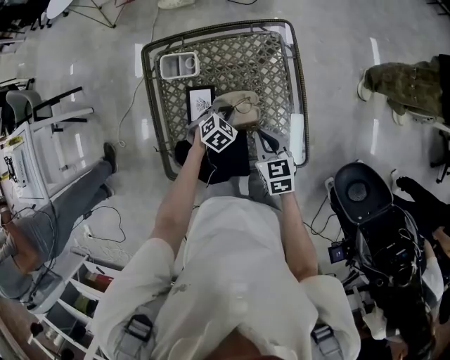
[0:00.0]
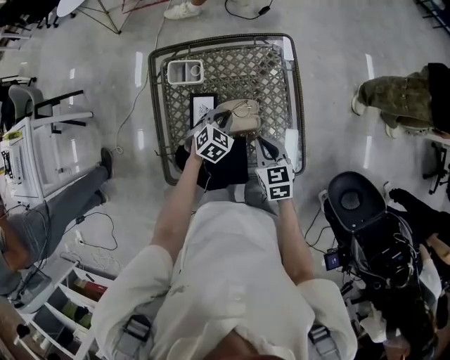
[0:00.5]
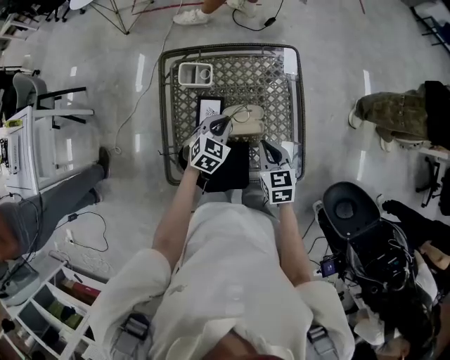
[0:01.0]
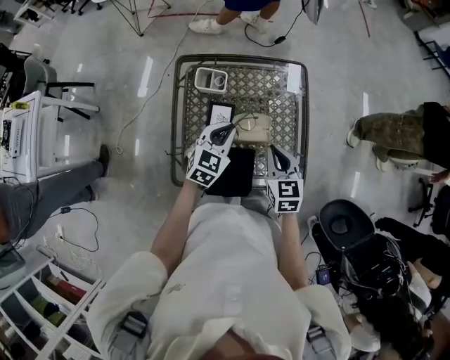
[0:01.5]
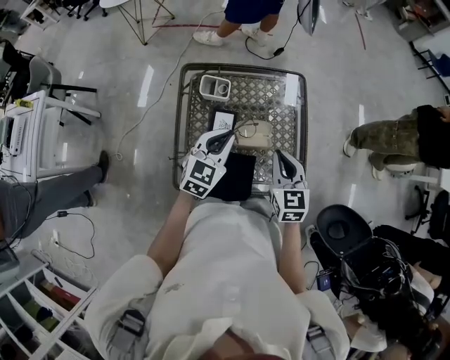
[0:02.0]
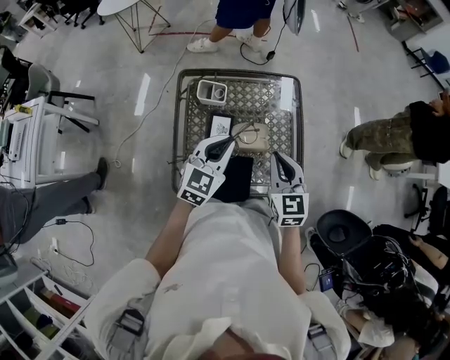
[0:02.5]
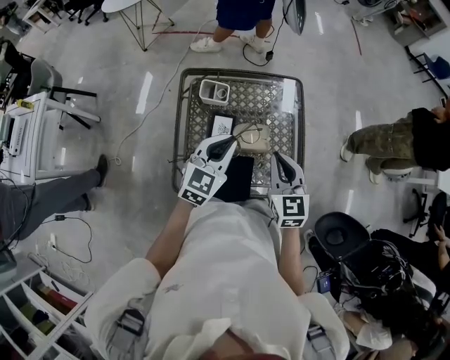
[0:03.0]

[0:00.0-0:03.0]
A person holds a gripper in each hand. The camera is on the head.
0:00.0 to 0:01.5: The left gripper is displaced upward by approximately 20 cm, and turns by approximately 30 degrees; the right gripper travels upward by roughly 10 cm.
0:01.5 to 0:03.0: The two grippers go roughly 10 cm upward.

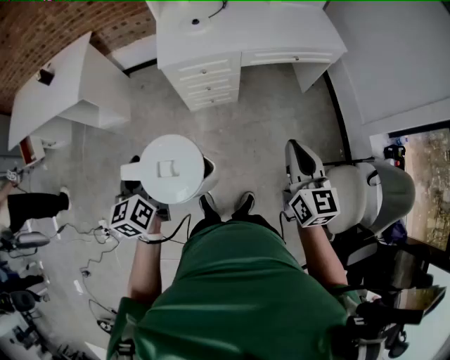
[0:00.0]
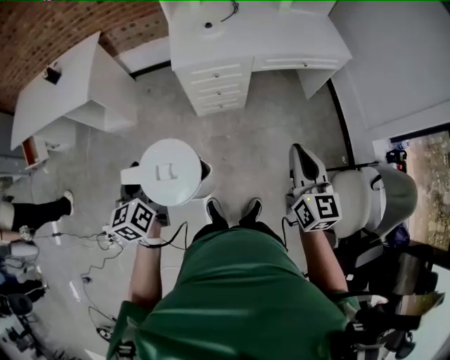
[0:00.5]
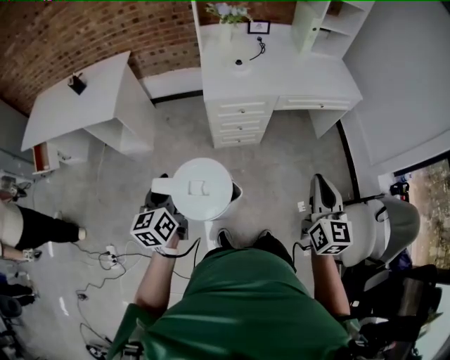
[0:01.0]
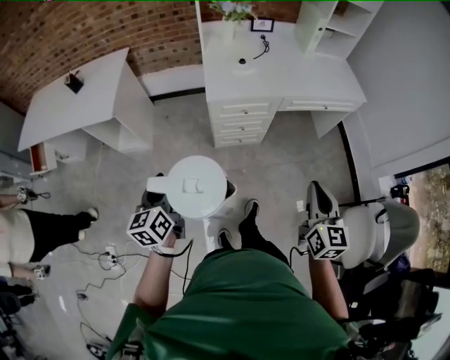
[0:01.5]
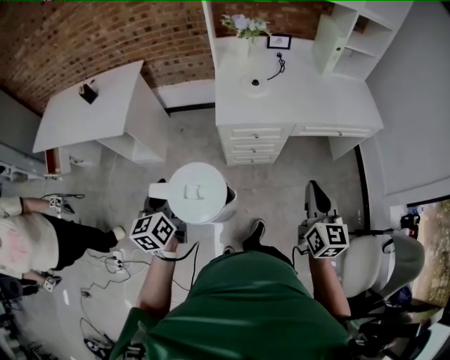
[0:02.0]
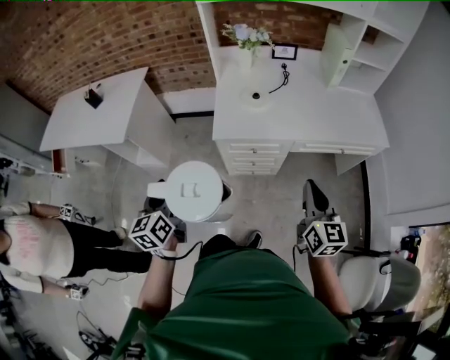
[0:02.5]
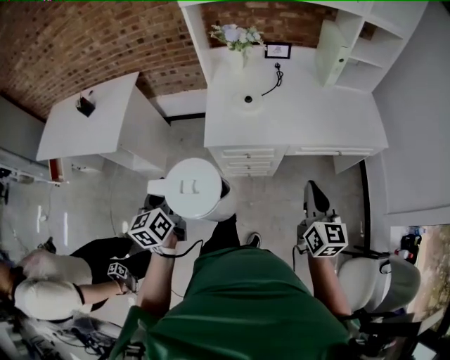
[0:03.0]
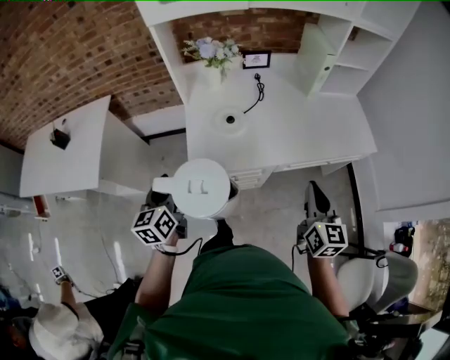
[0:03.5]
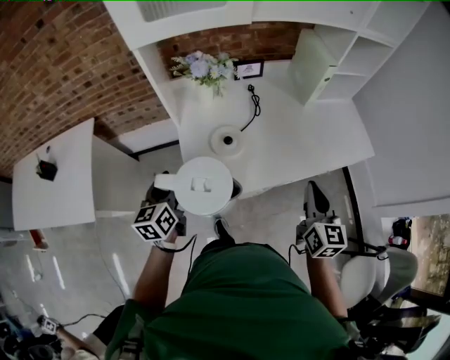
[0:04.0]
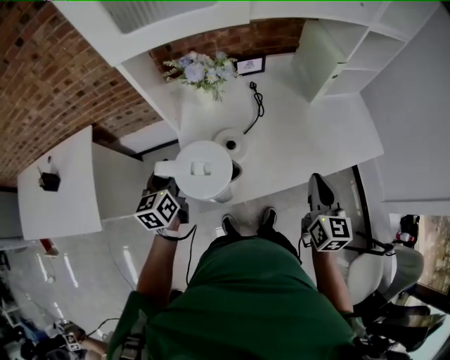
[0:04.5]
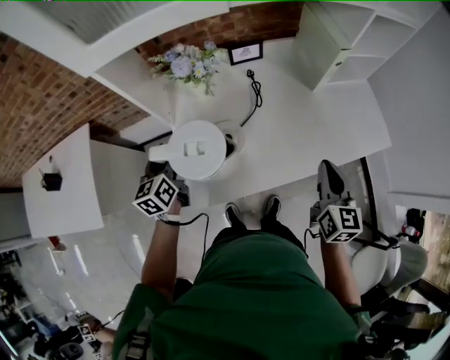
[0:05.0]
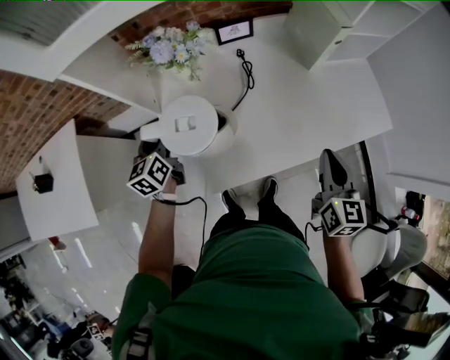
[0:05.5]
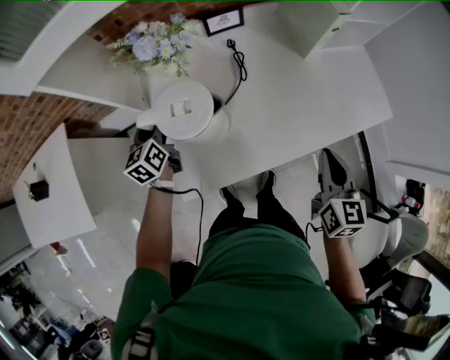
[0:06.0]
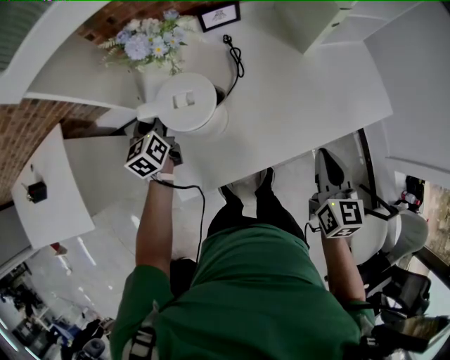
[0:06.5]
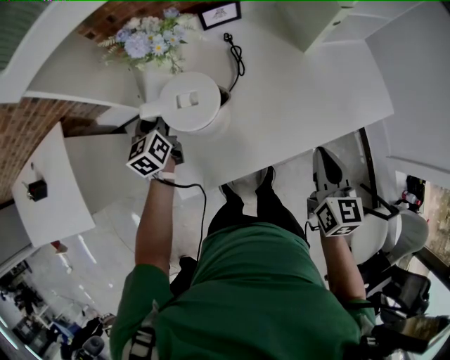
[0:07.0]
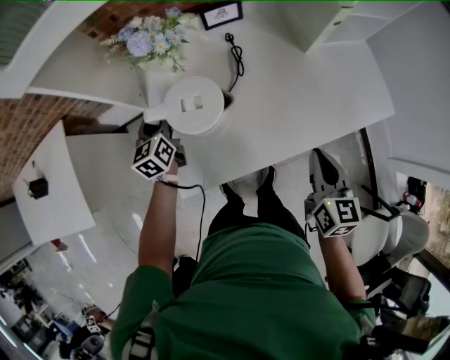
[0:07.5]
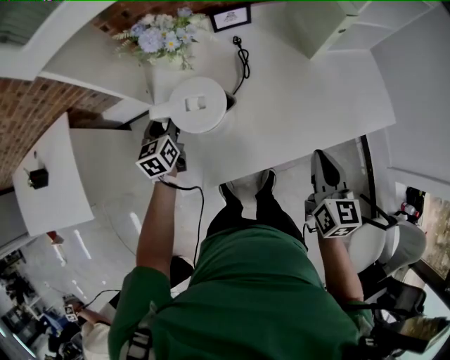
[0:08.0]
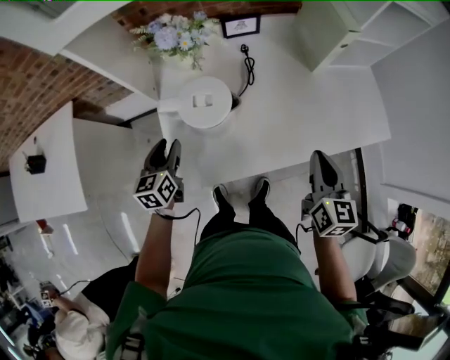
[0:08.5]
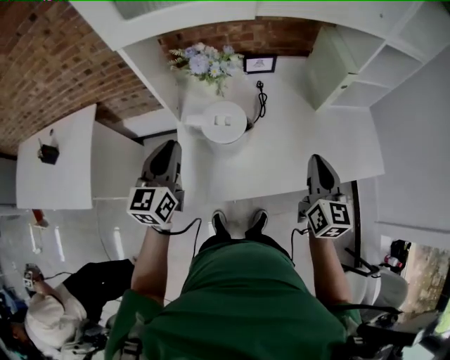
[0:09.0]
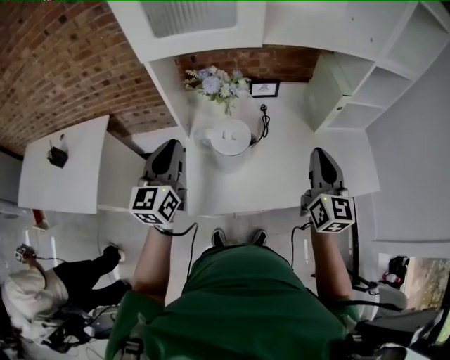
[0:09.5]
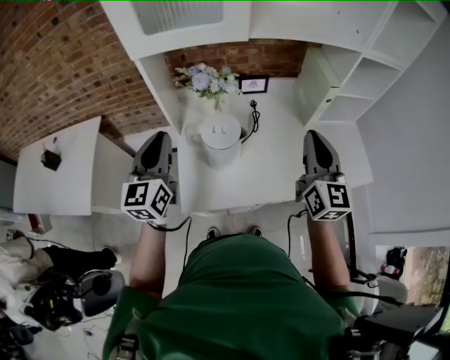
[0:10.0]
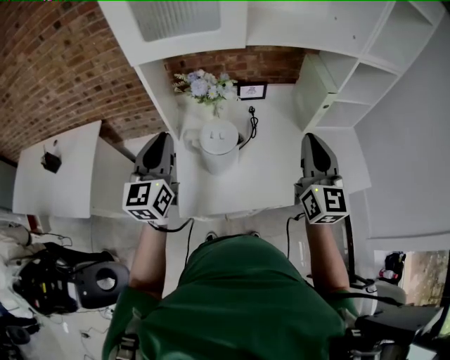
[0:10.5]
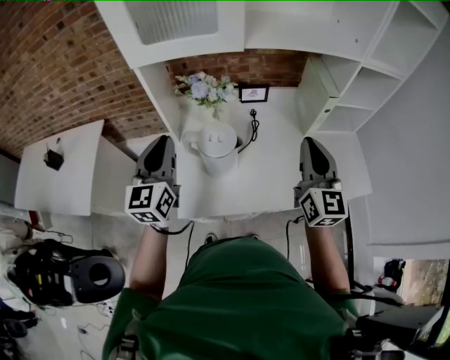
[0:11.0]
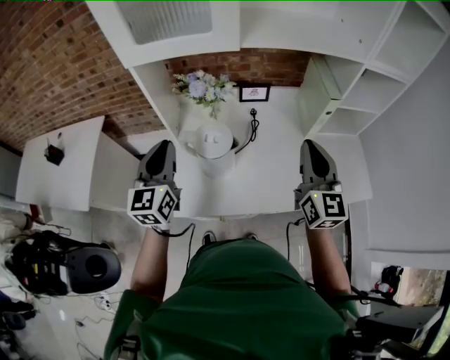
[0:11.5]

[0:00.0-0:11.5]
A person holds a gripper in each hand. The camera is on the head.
0:00.0 to 0:02.0: Both grippers move forward and to the left, some 20 cm.
0:02.0 to 0:04.0: The two grippers go roughly 40 cm forward.
0:04.0 to 0:06.0: The right gripper is displaced forward, downward and to the right by some 15 cm, while the left gripper heads forward and downward, covering about 25 cm.
0:06.0 to 0:07.5: There are only small adjustments of the grippers.
0:07.5 to 0:09.5: The left gripper moves upward and backward, roughly 30 cm, changes its angle by about 20 degrees, and closes its fingers, while the right gripper shifts approximately 20 cm upward, and swivels some 30 degrees.
0:09.5 to 0:11.5: There are only small adjustments of the grippers.

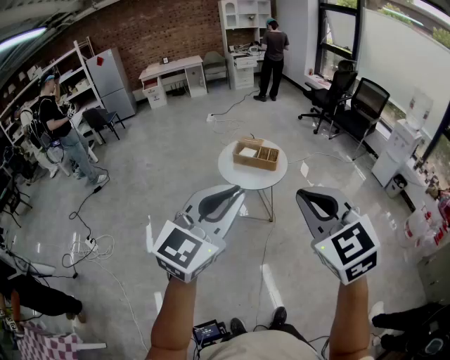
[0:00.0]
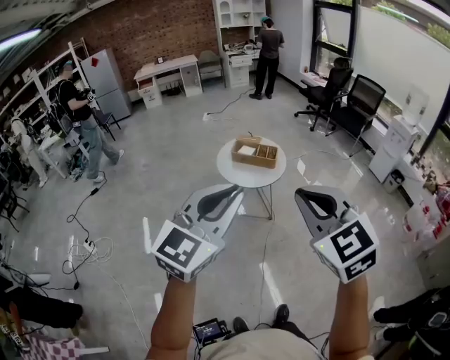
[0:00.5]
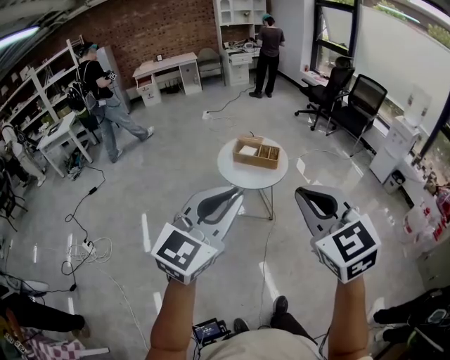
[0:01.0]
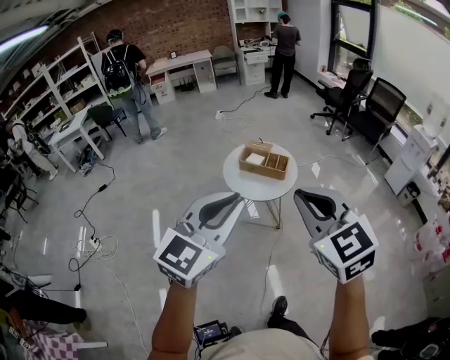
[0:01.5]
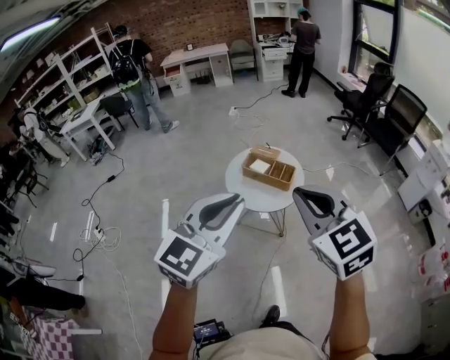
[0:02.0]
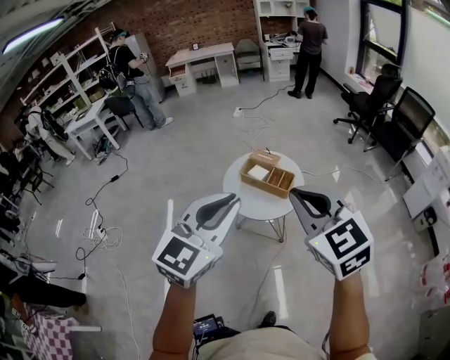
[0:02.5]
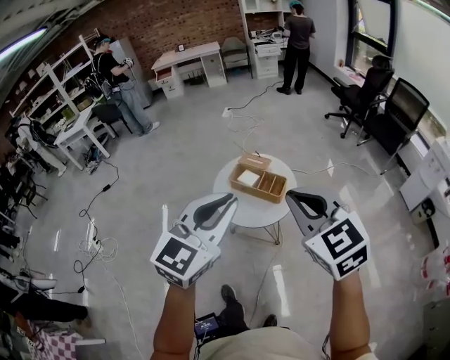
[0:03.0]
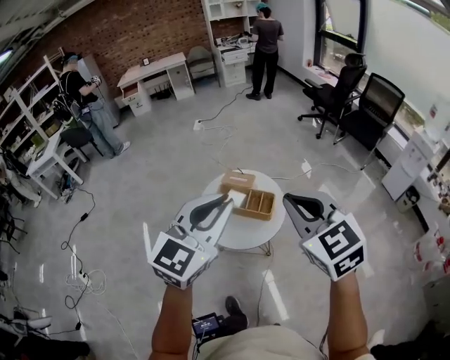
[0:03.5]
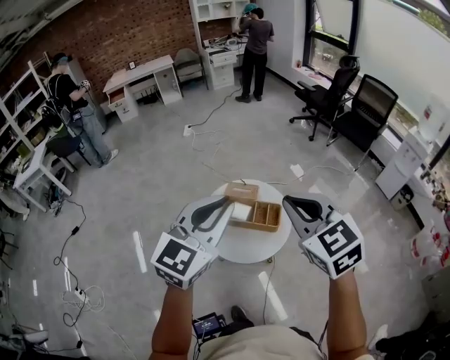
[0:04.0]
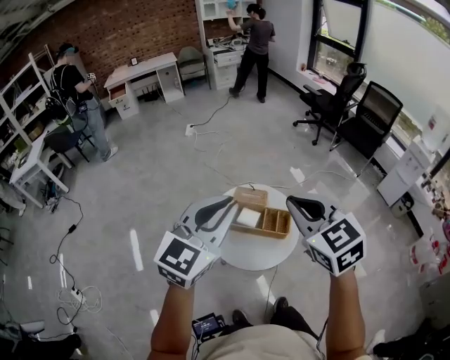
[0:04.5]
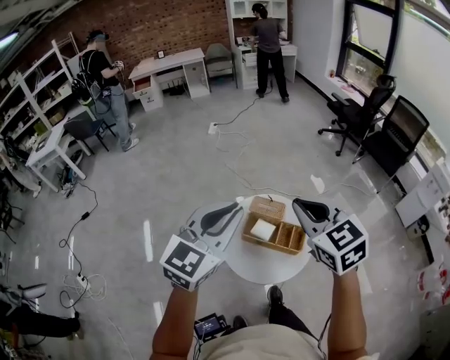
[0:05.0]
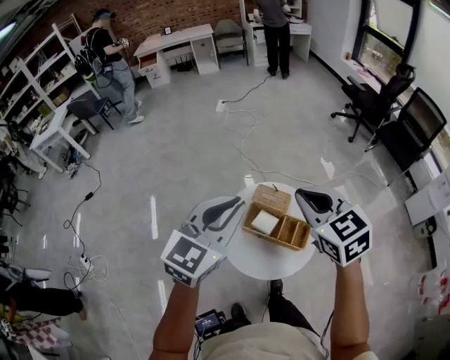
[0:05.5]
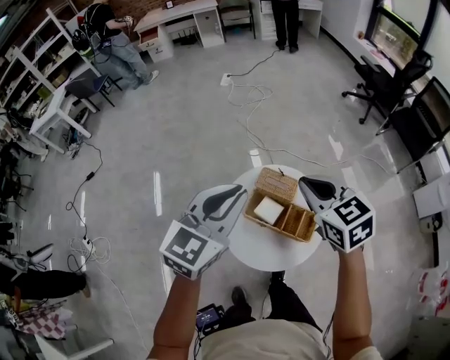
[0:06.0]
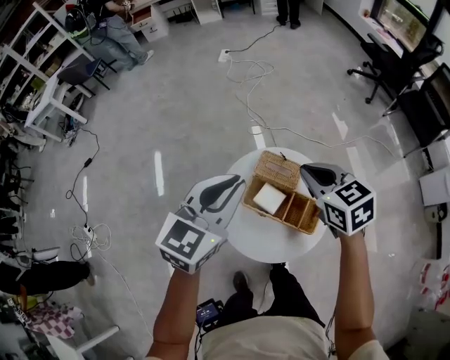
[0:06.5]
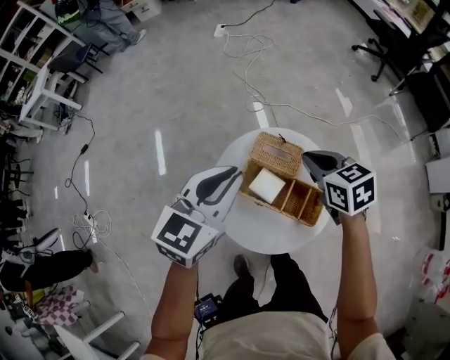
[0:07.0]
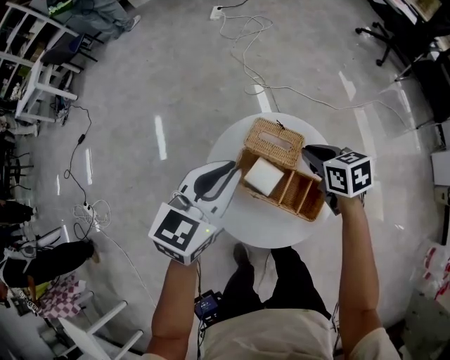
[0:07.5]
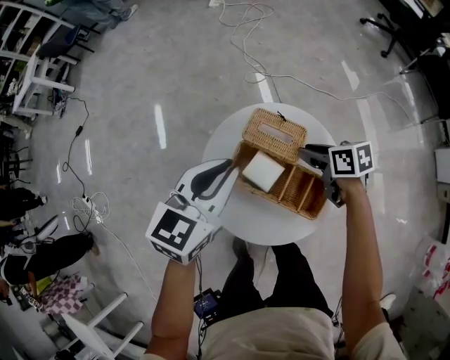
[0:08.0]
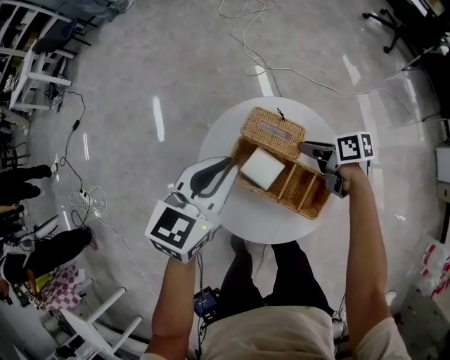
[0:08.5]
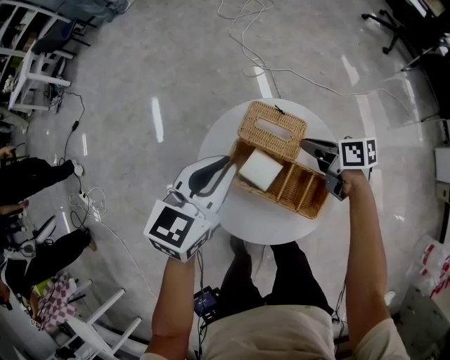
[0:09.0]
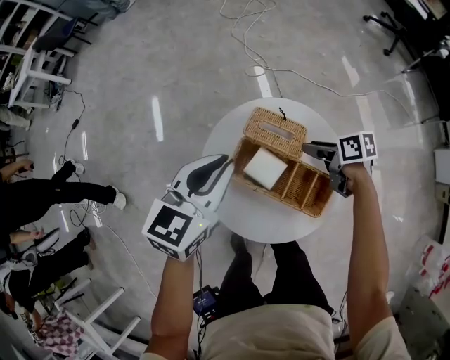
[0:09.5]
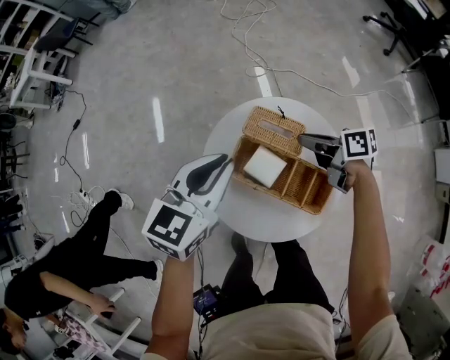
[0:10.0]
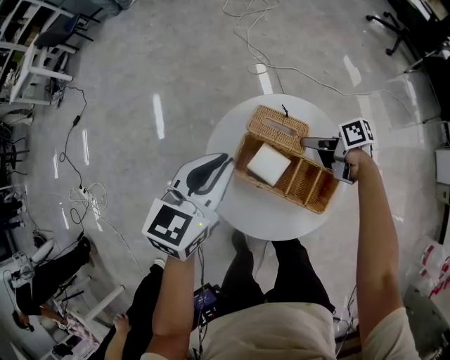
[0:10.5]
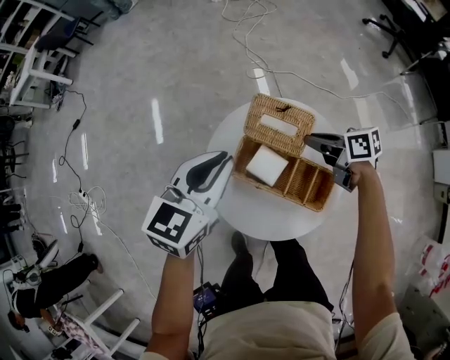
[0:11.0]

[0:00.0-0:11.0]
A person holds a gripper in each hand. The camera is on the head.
0:00.0 to 0:02.0: The two grippers go roughly 25 cm forward.
0:02.0 to 0:03.5: The grippers both shift forward by roughly 25 cm.
0:03.5 to 0:05.5: The two grippers go about 30 cm forward and to the left.
0:05.5 to 0:07.5: The left gripper goes roughly 25 cm downward and forward. Meanwhile the right gripper travels downward by roughly 35 cm, and changes its angle by about 40 degrees.
0:07.5 to 0:09.0: Both grippers travel together downward, approximately 5 cm. The right gripper turns by roughly 30 degrees.
0:09.0 to 0:11.0: The right gripper opens and closes again.

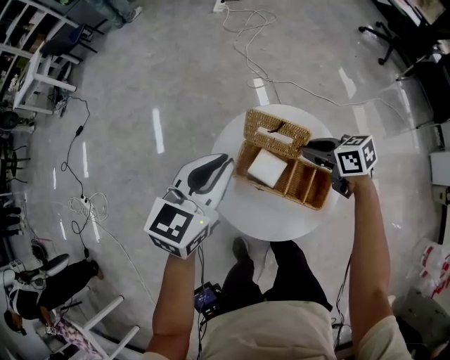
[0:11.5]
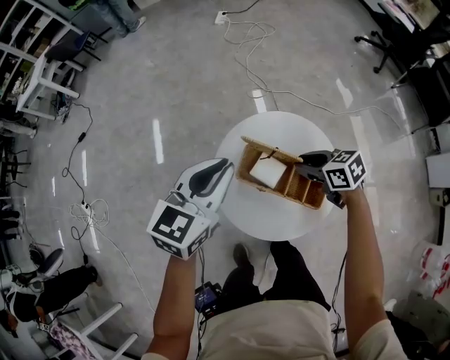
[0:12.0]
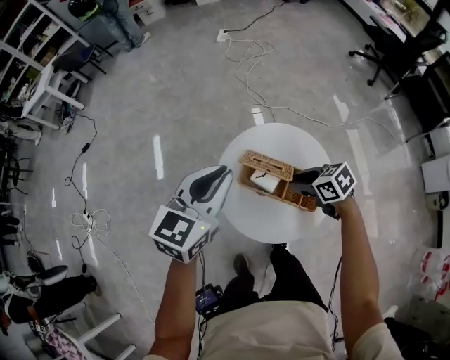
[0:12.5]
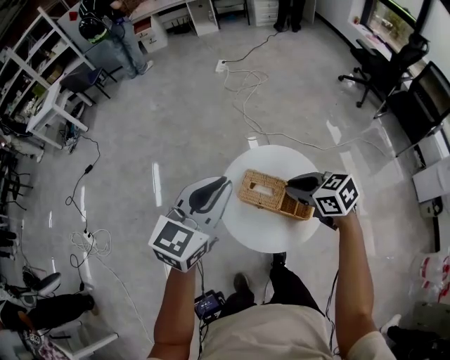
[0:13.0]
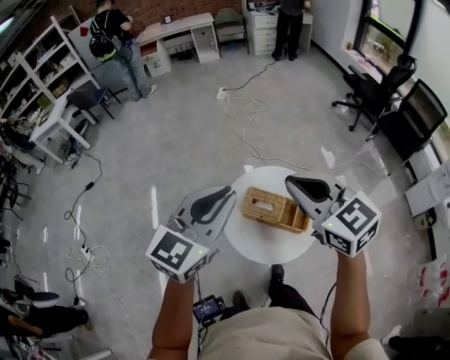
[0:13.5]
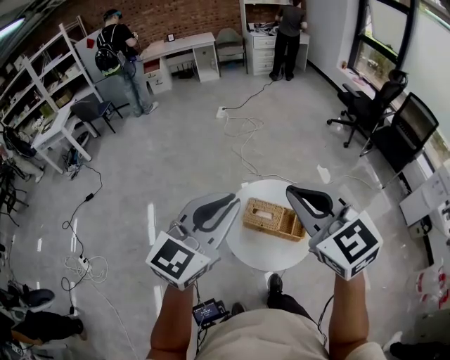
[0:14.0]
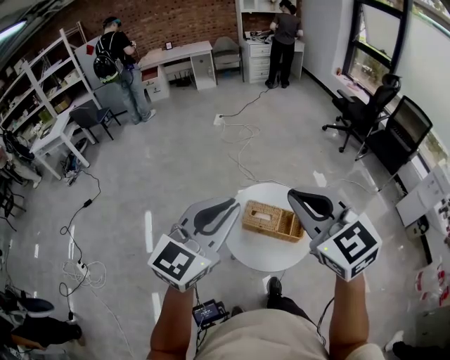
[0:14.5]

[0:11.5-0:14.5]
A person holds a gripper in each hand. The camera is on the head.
0:11.5 to 0:13.0: The right gripper travels upward, backward and to the left by some 20 cm; the left gripper goes some 20 cm upward and backward.
0:13.0 to 0:14.5: The right gripper moves upward and backward, some 35 cm, and swivels about 40 degrees; the left gripper goes approximately 20 cm upward and backward.
